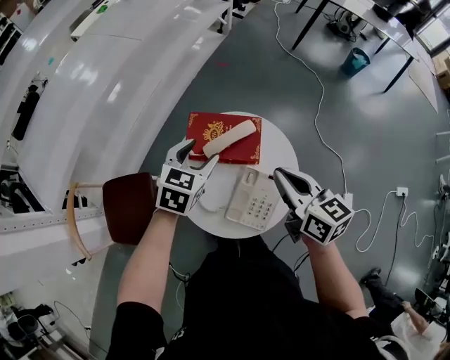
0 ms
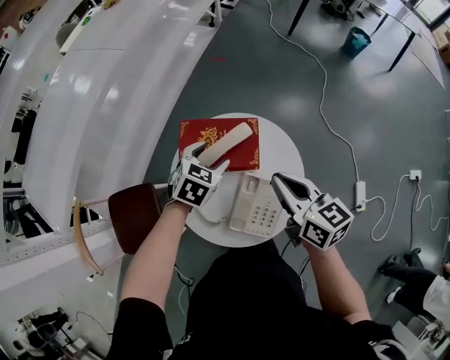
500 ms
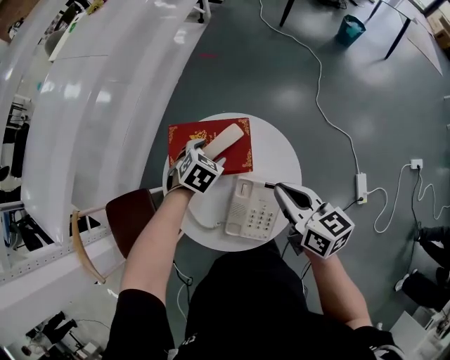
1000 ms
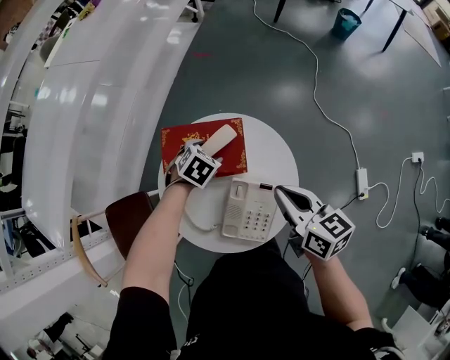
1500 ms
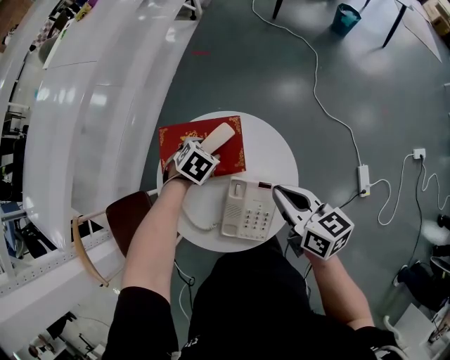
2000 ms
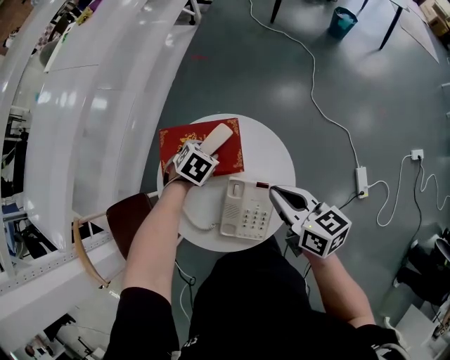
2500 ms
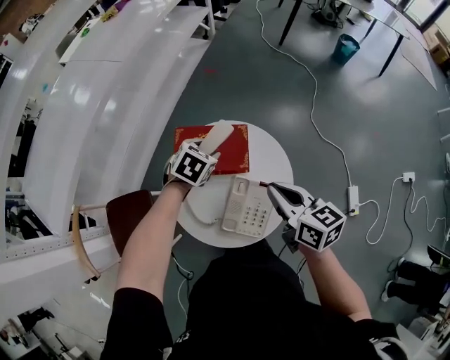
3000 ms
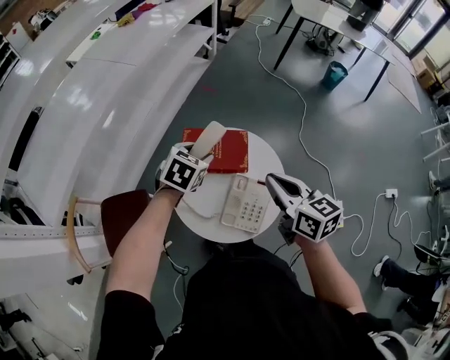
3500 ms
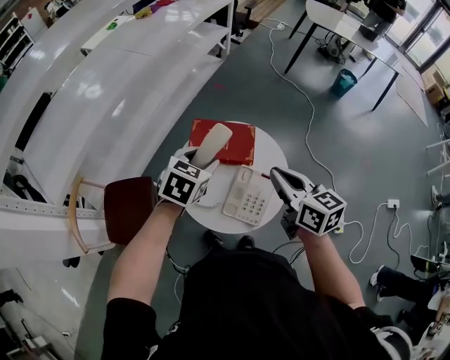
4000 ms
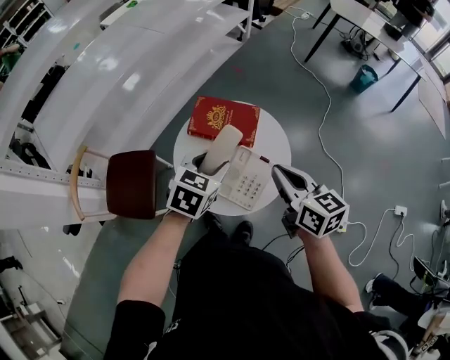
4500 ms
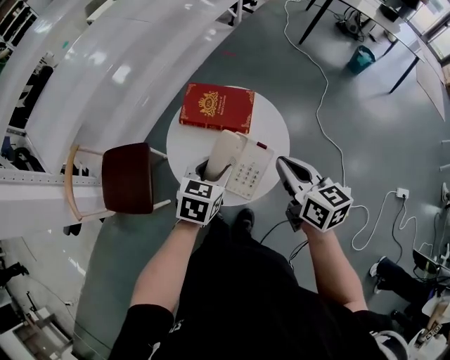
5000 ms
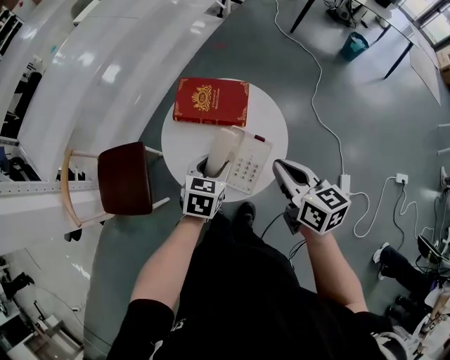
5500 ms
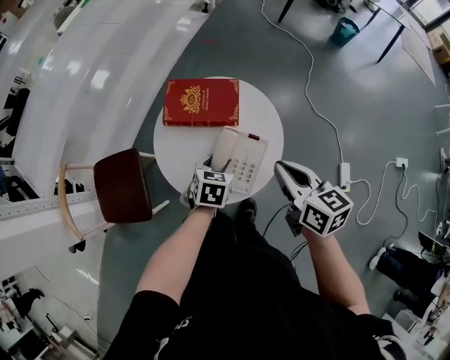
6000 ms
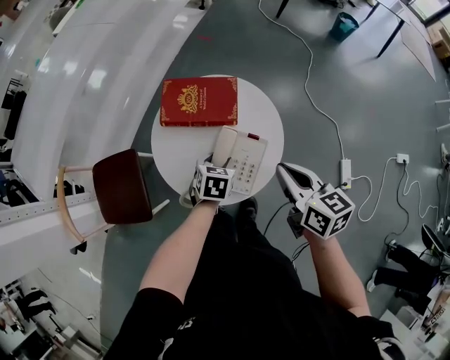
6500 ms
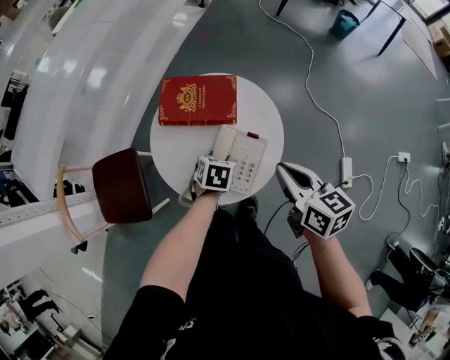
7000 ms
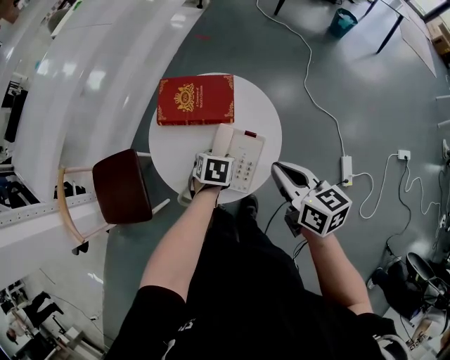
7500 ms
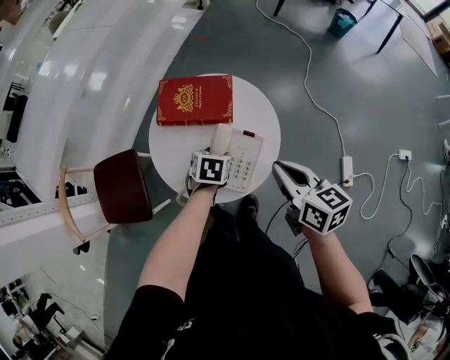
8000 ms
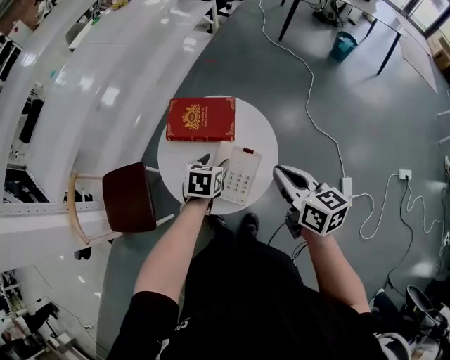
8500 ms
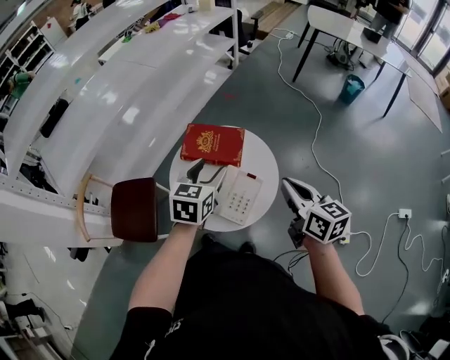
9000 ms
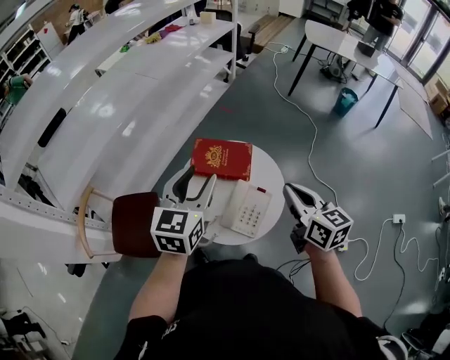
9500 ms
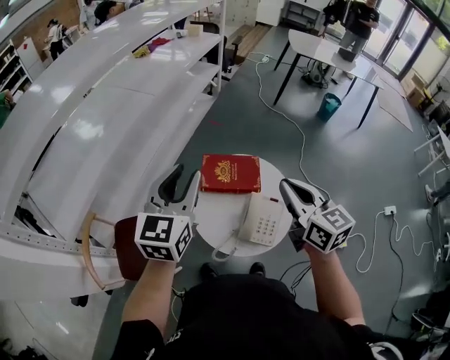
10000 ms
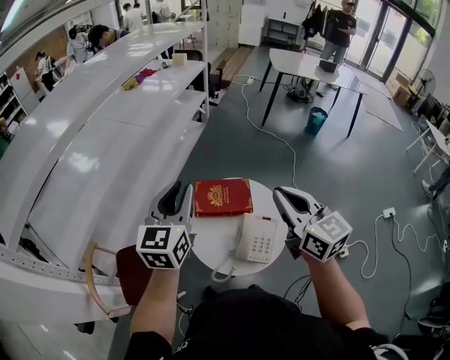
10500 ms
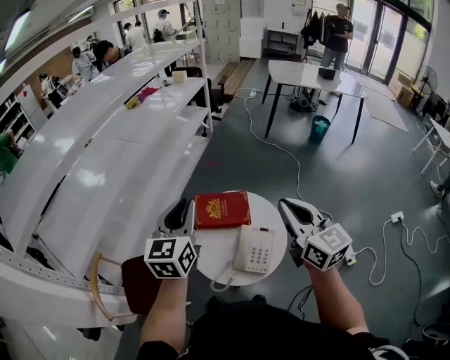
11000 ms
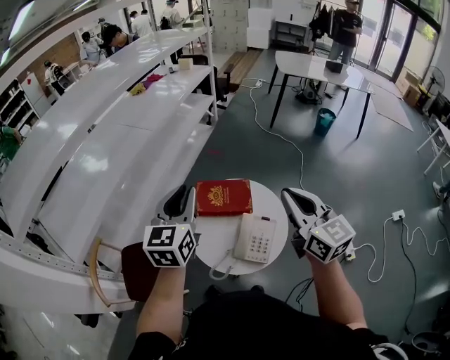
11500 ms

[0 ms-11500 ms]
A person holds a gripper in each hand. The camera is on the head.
0 ms to 2000 ms: The left gripper goes about 20 cm downward, and points its fingers approximately 30 degrees further downward. The right gripper travels downward and to the right by approximately 10 cm.
2000 ms to 4000 ms: The left gripper moves upward and backward, about 30 cm, and swivels about 30 degrees. The right gripper goes about 15 cm upward.
4000 ms to 6000 ms: The right gripper goes approximately 10 cm downward, to the right and backward; the left gripper moves downward, to the right and backward, roughly 25 cm.
6000 ms to 7500 ms: The left gripper heads downward, covering some 5 cm.
7500 ms to 9500 ms: The right gripper is displaced upward by about 15 cm. The left gripper moves upward, some 40 cm, and angles its fingers upward, by about 50 degrees.
9500 ms to 11500 ms: The left gripper is displaced to the left and upward by some 10 cm, and closes up; the right gripper goes approximately 10 cm upward, and turns by about 20 degrees.

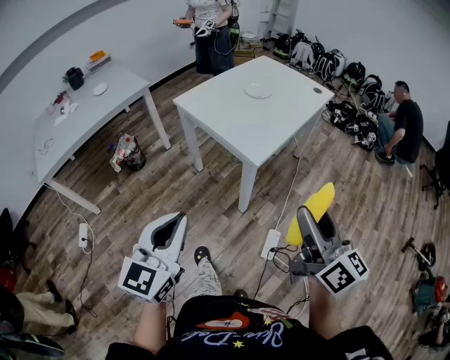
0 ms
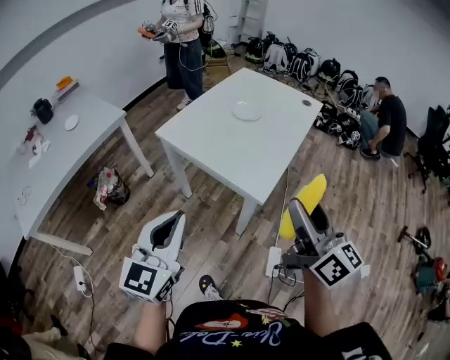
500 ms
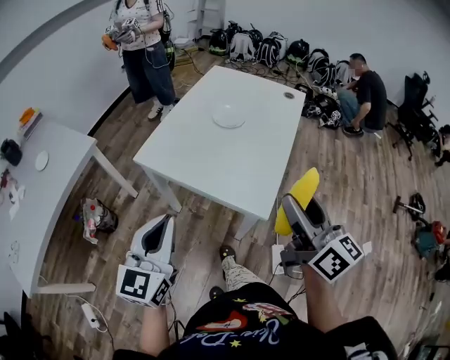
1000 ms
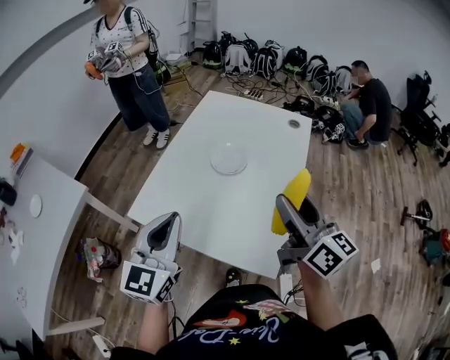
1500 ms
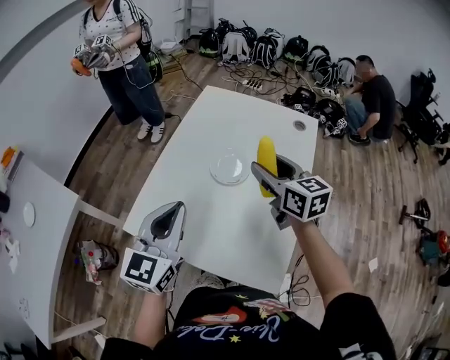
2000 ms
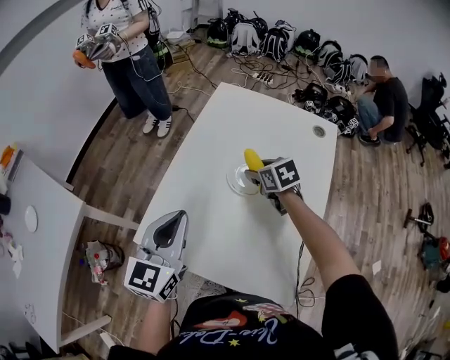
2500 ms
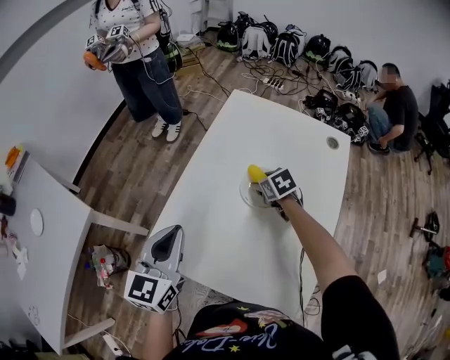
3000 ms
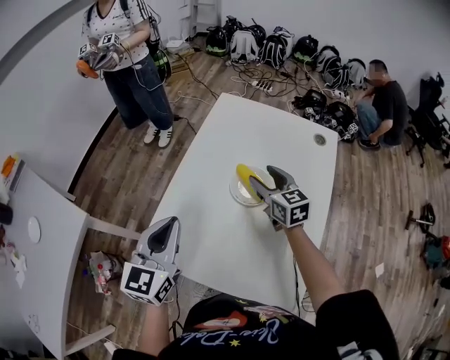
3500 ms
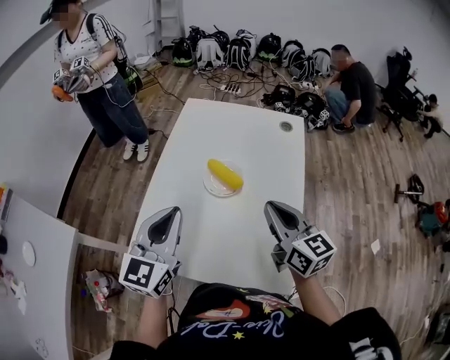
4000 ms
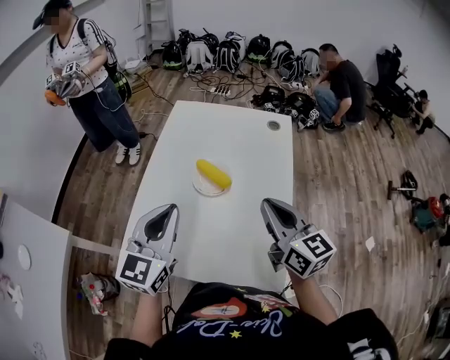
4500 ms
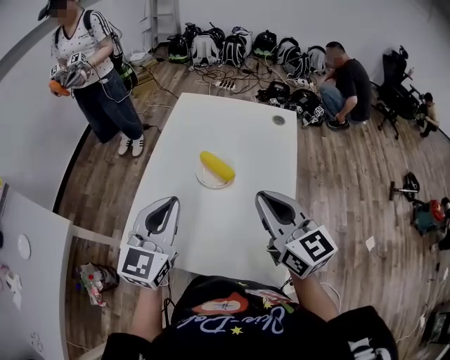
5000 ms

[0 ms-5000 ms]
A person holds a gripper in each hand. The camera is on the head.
0 ms to 2500 ms: The pair of grippers is taken forward, some 80 cm. The left gripper changes its angle by about 20 degrees; the right gripper tilts its fingers roughly 50 degrees downward.
2500 ms to 5000 ms: The left gripper goes some 5 cm to the right, while the right gripper shifts roughly 30 cm backward and upward, points its fingers roughly 40 degrees further upward, and closes.

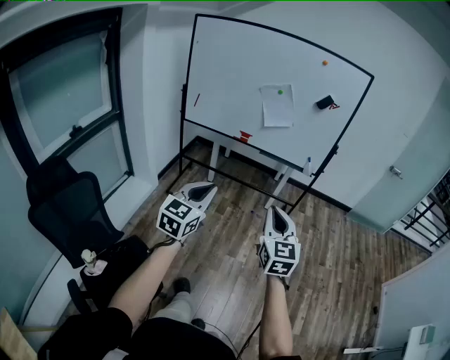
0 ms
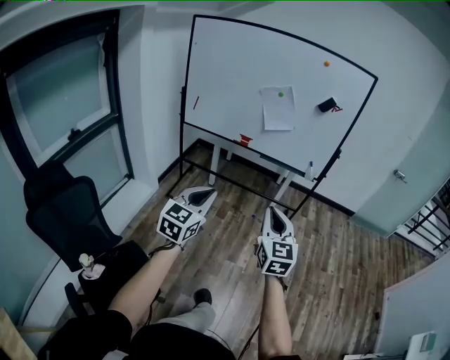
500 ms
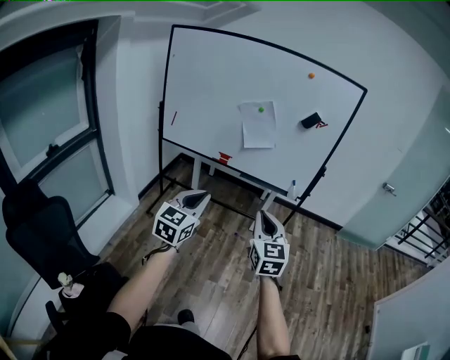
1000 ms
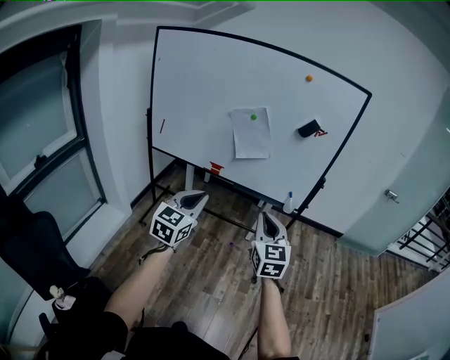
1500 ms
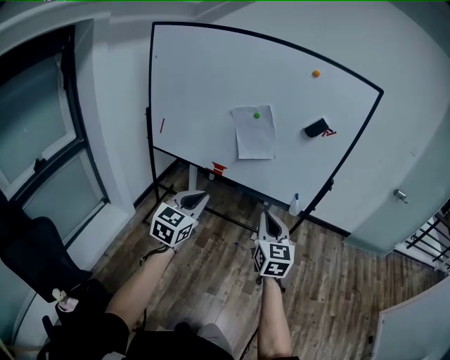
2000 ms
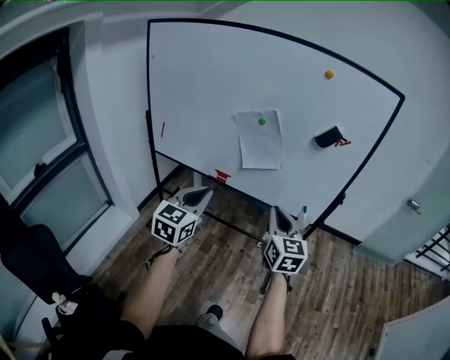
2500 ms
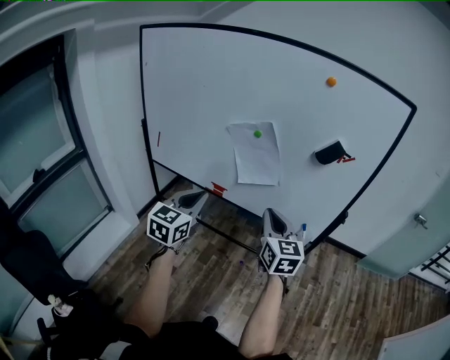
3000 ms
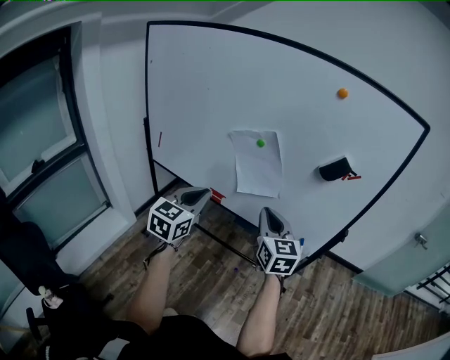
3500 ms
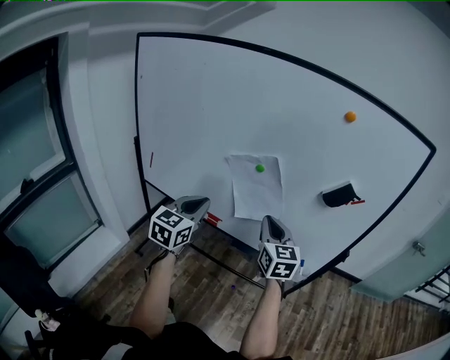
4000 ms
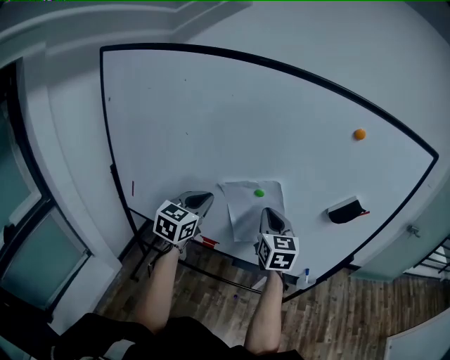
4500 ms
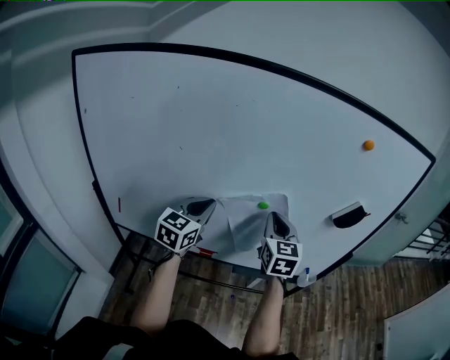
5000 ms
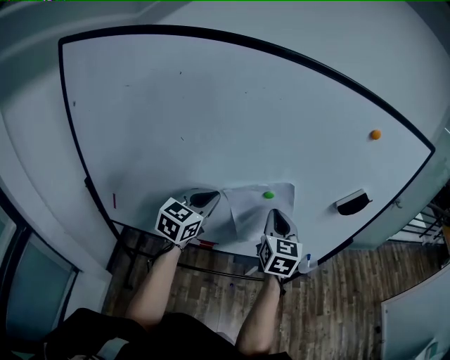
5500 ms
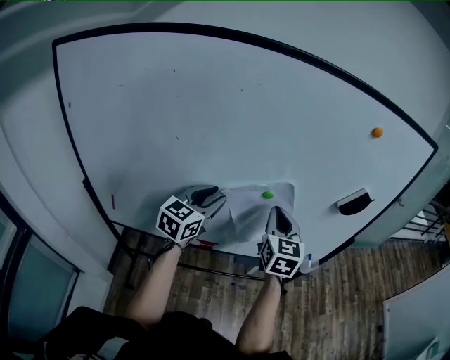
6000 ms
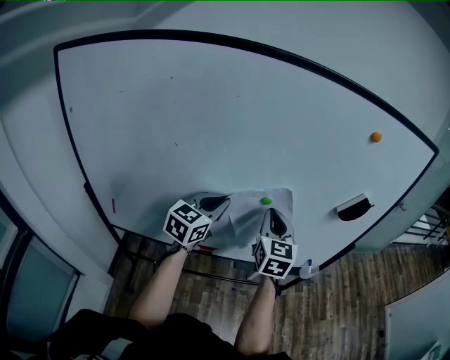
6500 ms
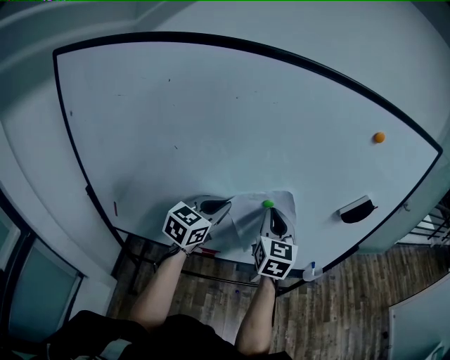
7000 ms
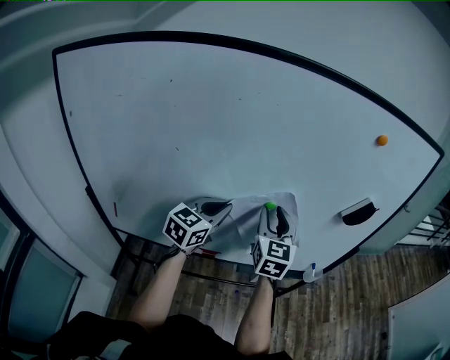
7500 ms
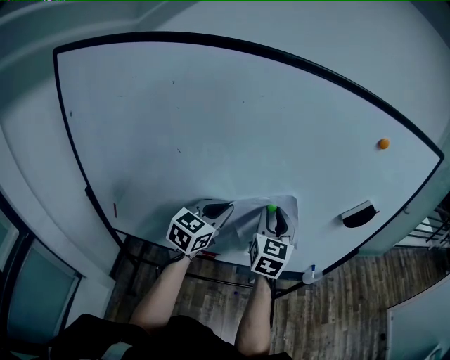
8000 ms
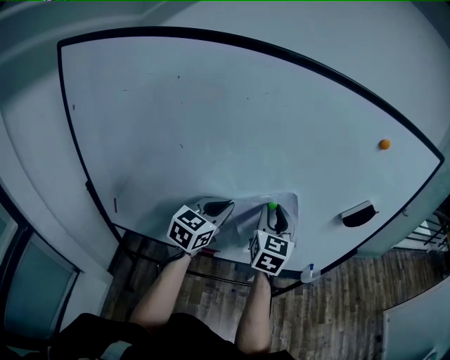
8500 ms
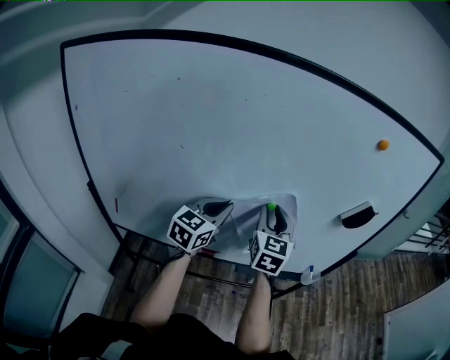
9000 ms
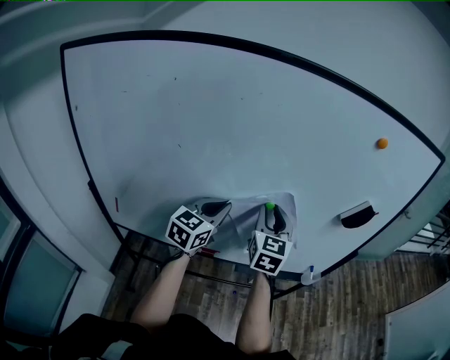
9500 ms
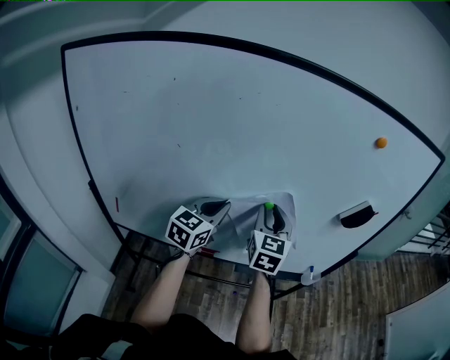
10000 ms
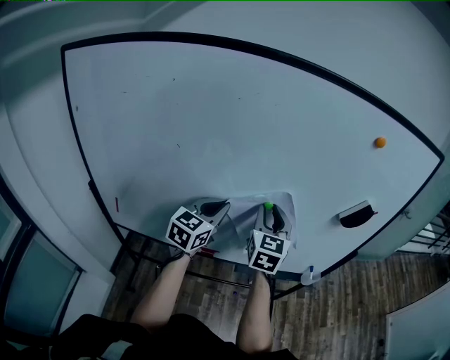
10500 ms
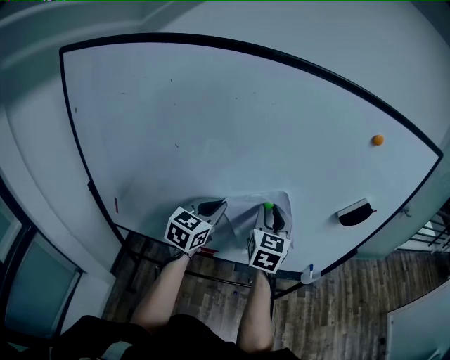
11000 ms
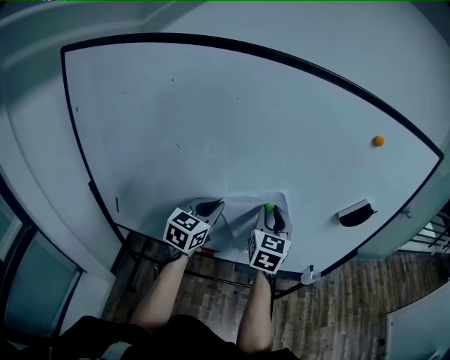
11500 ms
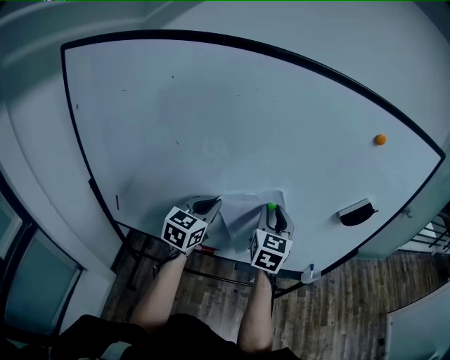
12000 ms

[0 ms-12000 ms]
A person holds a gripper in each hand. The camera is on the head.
0 ms to 2000 ms: The grippers both shift forward by roughly 35 cm.
2000 ms to 4000 ms: The grippers both shift forward by about 35 cm.
4000 ms to 6000 ms: The left gripper ends up some 20 cm from where it was, swivels roughly 30 degrees, and opens its fingers. Meanwhile the right gripper shifts by about 15 cm, and changes its angle by about 30 degrees.
6000 ms to 8000 ms: The right gripper opens up. Meanwhile the left gripper closes up.
8000 ms to 10000 ms: Both grippers stay put.
10000 ms to 12000 ms: There are only small adjustments of the grippers.
